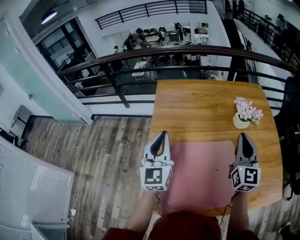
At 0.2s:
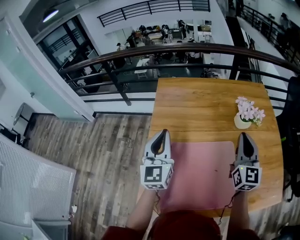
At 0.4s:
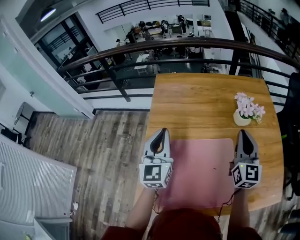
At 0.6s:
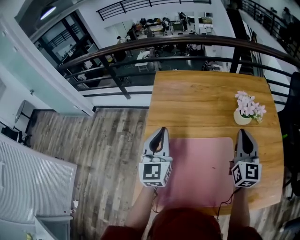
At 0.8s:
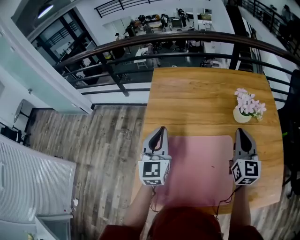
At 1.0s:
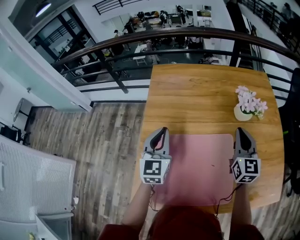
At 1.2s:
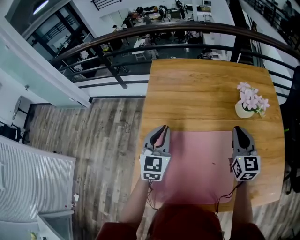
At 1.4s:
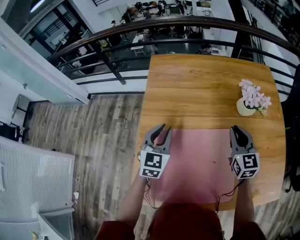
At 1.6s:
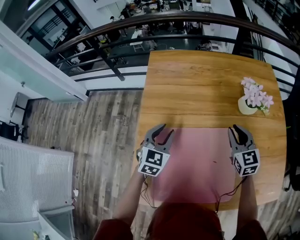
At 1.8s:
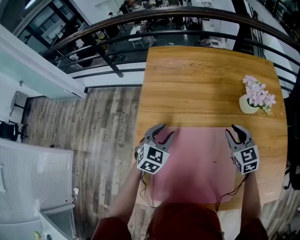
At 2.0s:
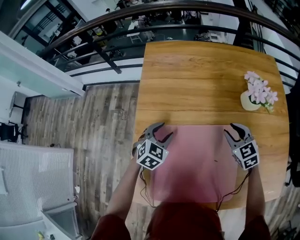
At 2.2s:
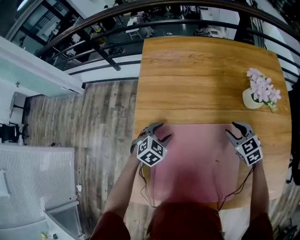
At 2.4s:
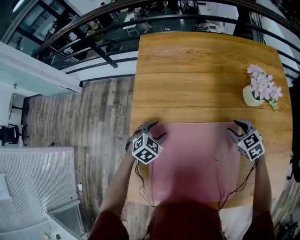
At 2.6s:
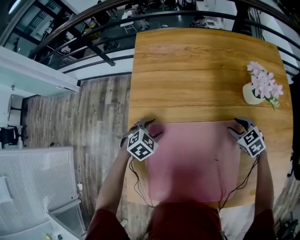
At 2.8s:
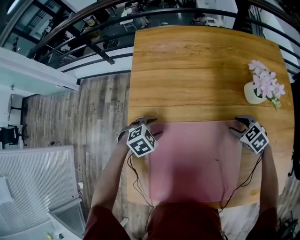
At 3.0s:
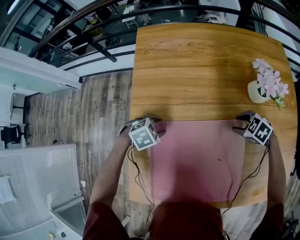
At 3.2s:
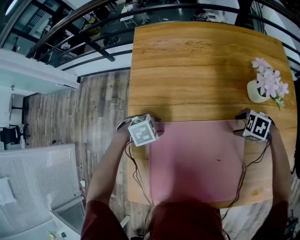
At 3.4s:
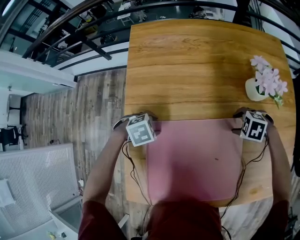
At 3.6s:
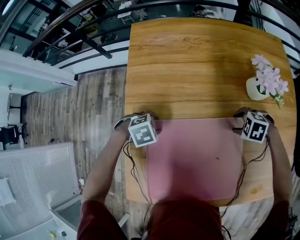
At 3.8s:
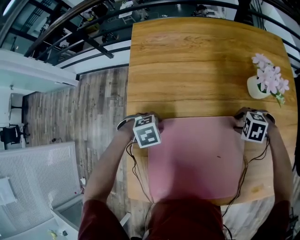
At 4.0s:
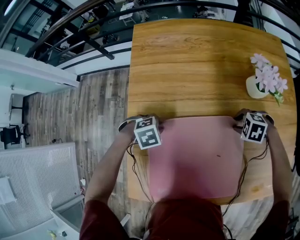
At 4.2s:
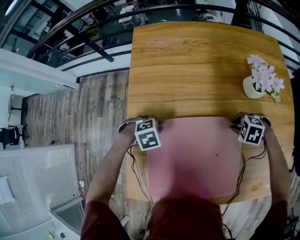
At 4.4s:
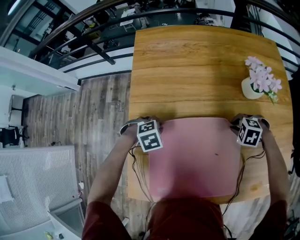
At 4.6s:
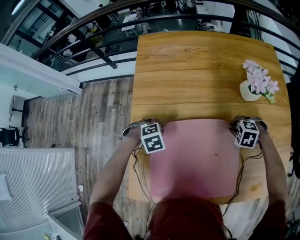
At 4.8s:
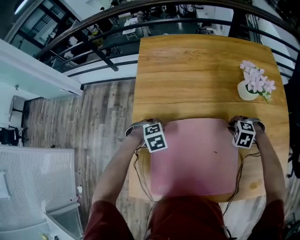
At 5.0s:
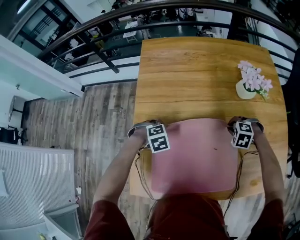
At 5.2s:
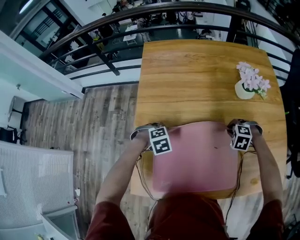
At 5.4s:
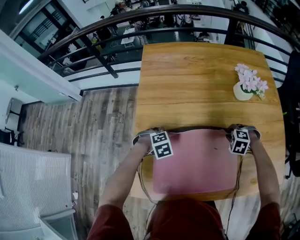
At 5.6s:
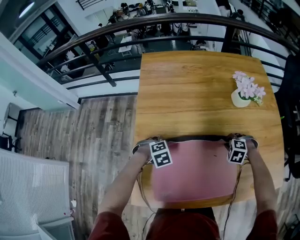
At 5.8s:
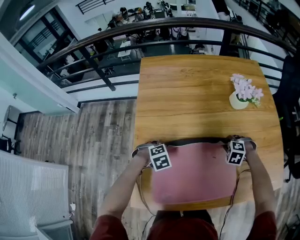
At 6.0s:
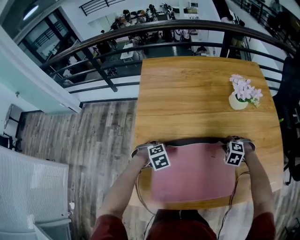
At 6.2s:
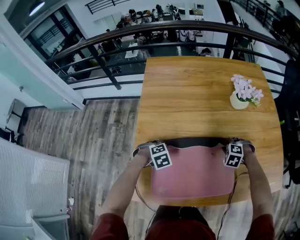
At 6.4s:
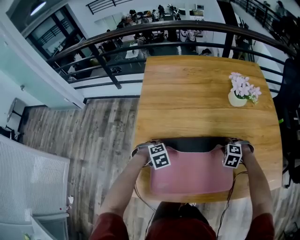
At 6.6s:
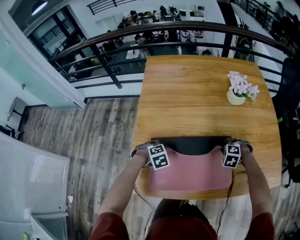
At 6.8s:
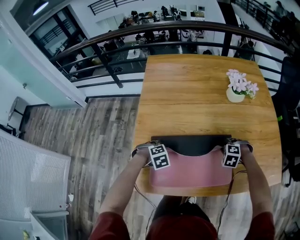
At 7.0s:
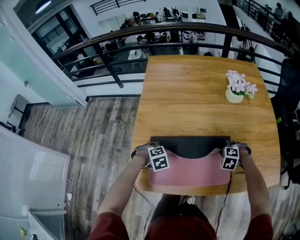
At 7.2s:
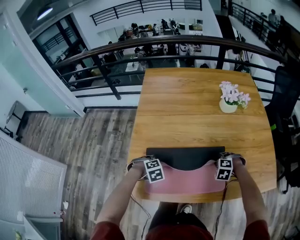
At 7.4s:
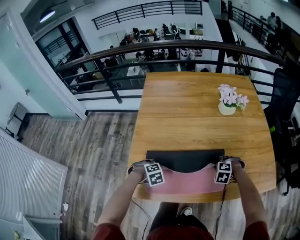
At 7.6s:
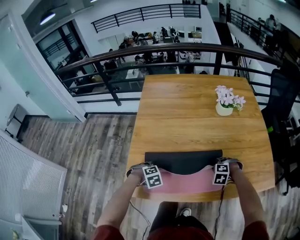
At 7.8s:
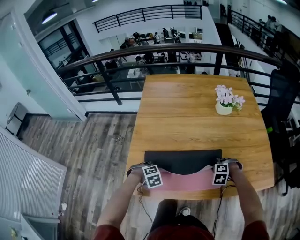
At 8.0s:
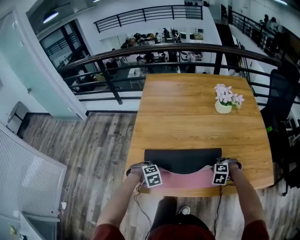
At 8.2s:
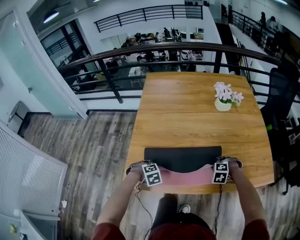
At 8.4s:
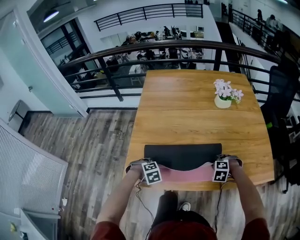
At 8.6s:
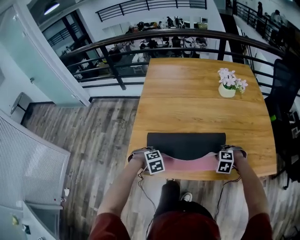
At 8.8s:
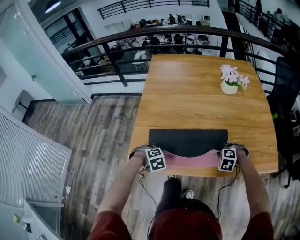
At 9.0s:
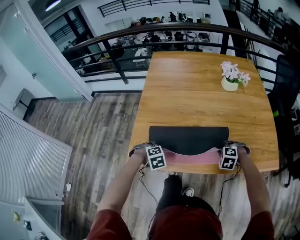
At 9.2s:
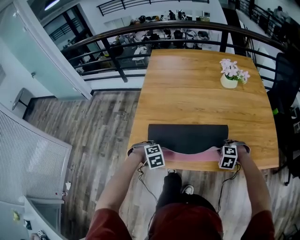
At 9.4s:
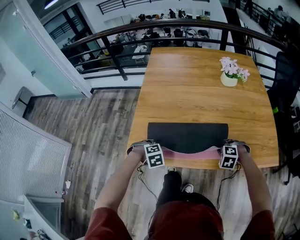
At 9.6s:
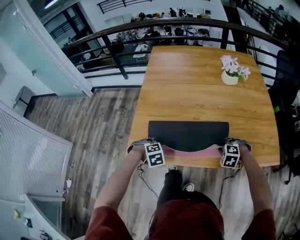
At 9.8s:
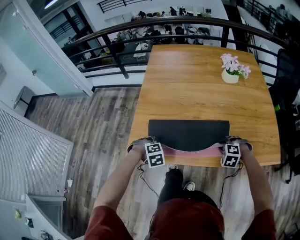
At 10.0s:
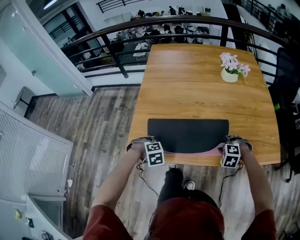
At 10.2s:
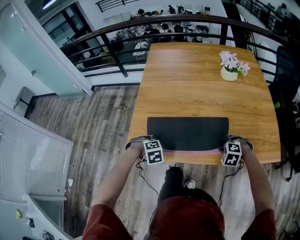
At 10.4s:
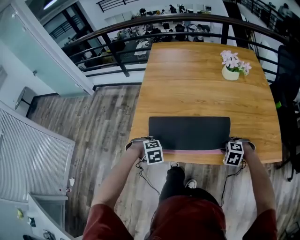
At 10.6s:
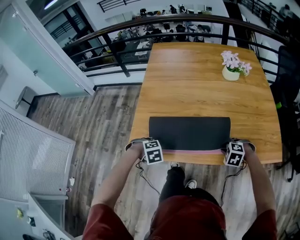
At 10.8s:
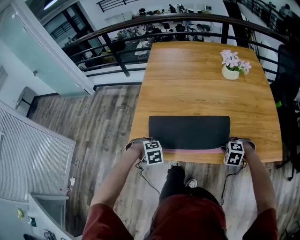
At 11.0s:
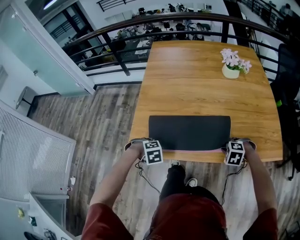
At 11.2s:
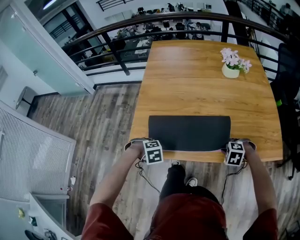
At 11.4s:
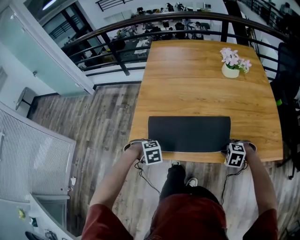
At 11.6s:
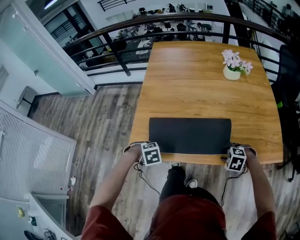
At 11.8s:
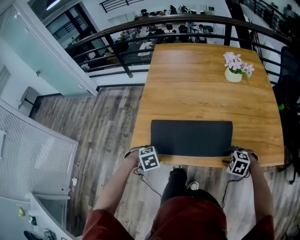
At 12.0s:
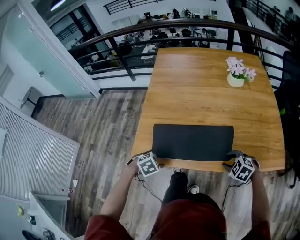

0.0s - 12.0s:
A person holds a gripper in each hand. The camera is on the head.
0.0s - 1.6s: The two grippers go about 20 cm downward and forward. The left gripper tips its fingers downward by approximately 30 degrees, and opens. The right gripper swivels some 30 degrees.
1.6s - 3.0s: Both grippers move downward, roughly 20 cm. The left gripper tips its fingers downward by some 40 degrees, while the right gripper points its fingers roughly 40 degrees further downward, and opens its fingers.
3.0s - 4.4s: The left gripper closes, while the right gripper changes its angle by about 20 degrees, and closes.
4.4s - 6.0s: The right gripper changes place by about 10 cm; the left gripper ends up approximately 10 cm from where it was.
6.0s - 7.6s: The right gripper shifts by about 20 cm; the left gripper moves roughly 20 cm.
7.6s - 9.0s: The right gripper changes place by roughly 10 cm; the left gripper changes place by some 10 cm.
9.0s - 10.4s: The grippers move only a little.
10.4s - 12.0s: The left gripper rotates approximately 20 degrees.

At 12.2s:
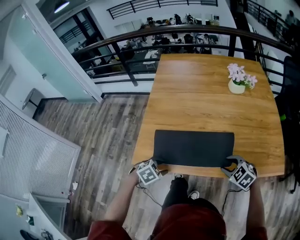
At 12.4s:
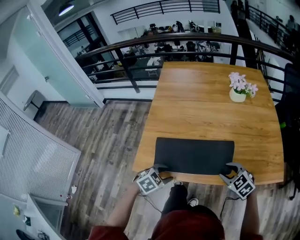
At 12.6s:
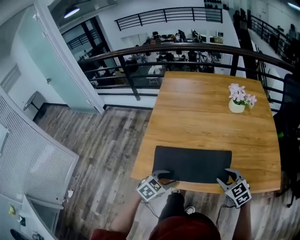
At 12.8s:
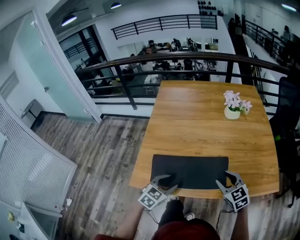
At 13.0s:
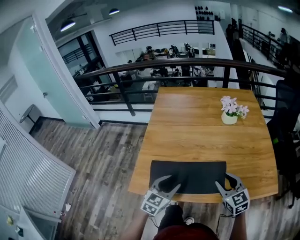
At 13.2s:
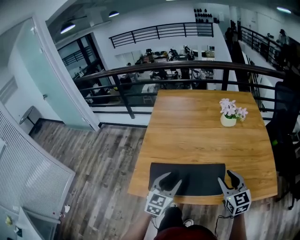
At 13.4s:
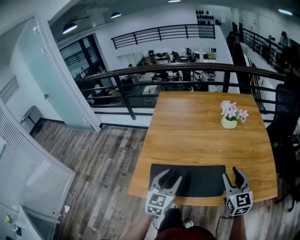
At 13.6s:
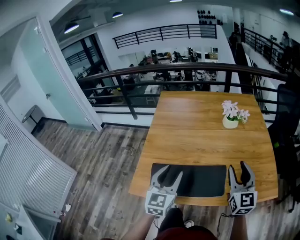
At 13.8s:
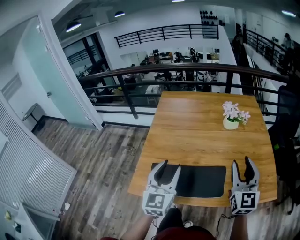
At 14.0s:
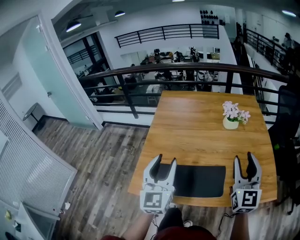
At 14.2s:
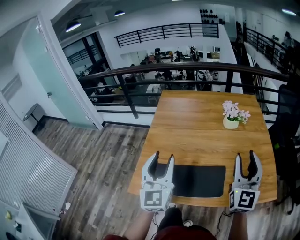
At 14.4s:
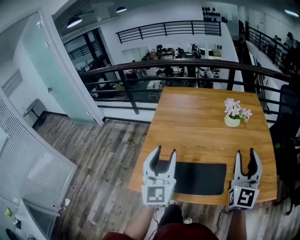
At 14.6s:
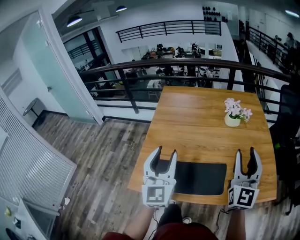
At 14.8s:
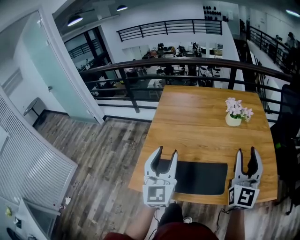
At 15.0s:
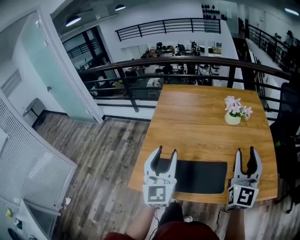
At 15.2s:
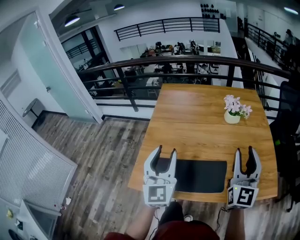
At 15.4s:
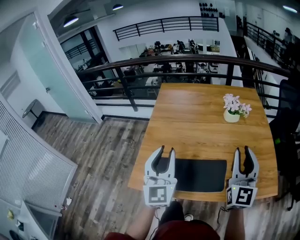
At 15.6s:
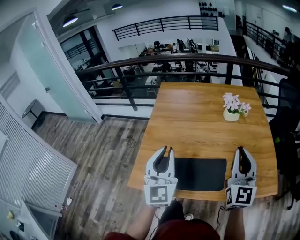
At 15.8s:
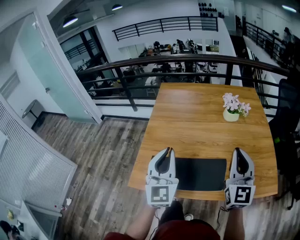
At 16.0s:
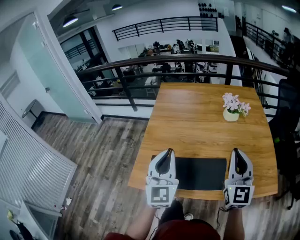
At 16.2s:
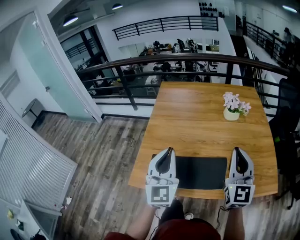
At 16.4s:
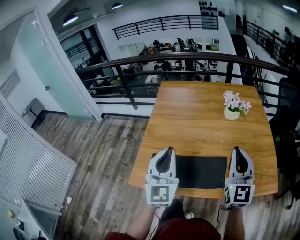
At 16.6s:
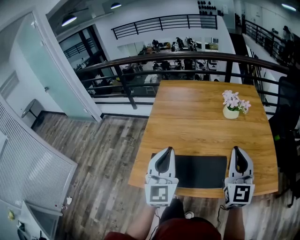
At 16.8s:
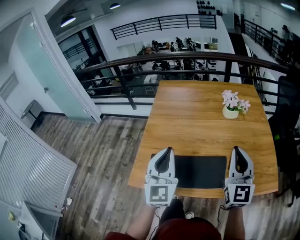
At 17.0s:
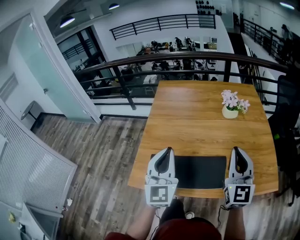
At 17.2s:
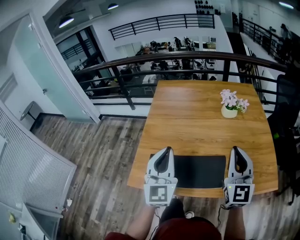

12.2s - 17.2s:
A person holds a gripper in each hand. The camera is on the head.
12.2s - 13.8s: The two grippers go roughly 30 cm upward. The left gripper tips its fingers upward by roughly 70 degrees, while the right gripper tips its fingers upward by roughly 60 degrees.
13.8s - 15.6s: The left gripper shifts by approximately 5 cm, and closes, while the right gripper closes.
15.6s - 17.2s: There are only small adjustments of the grippers.

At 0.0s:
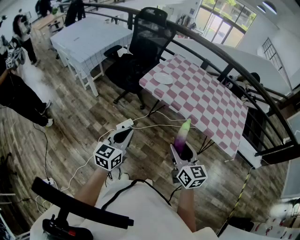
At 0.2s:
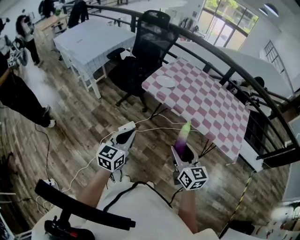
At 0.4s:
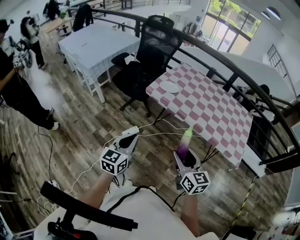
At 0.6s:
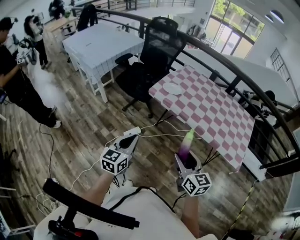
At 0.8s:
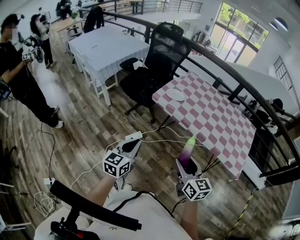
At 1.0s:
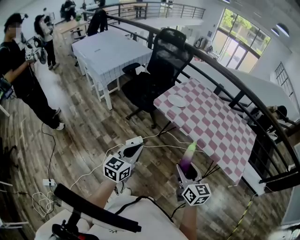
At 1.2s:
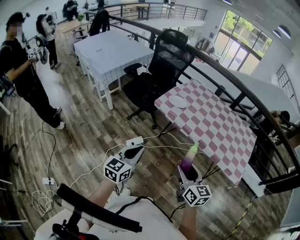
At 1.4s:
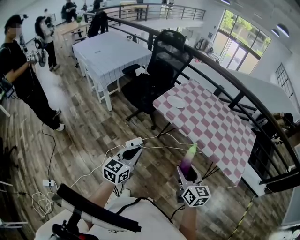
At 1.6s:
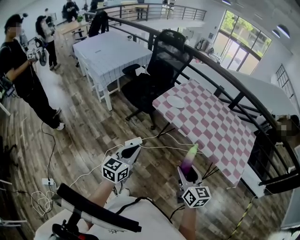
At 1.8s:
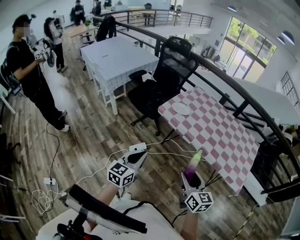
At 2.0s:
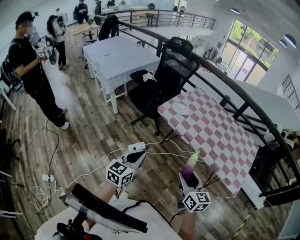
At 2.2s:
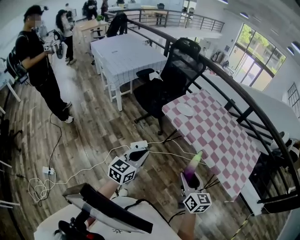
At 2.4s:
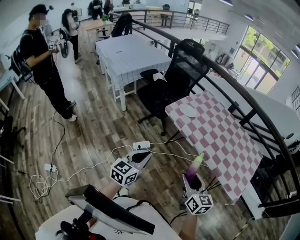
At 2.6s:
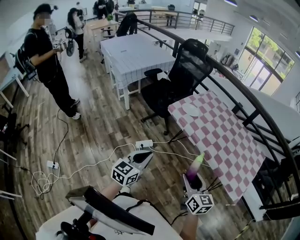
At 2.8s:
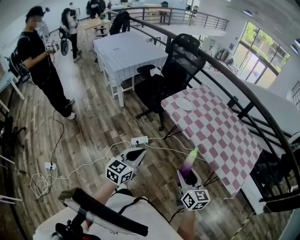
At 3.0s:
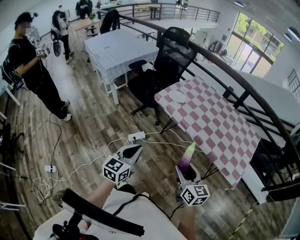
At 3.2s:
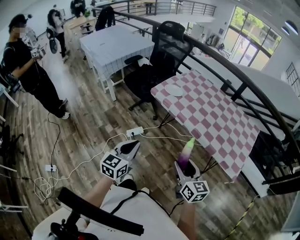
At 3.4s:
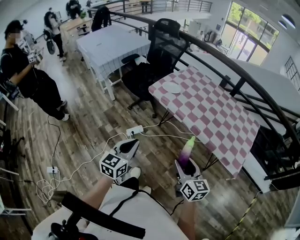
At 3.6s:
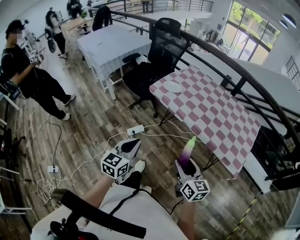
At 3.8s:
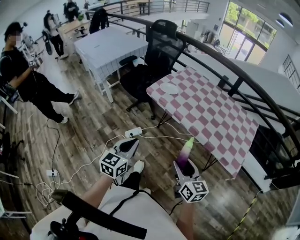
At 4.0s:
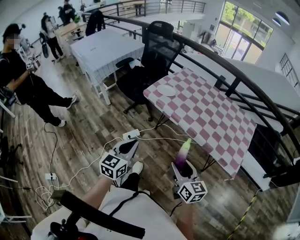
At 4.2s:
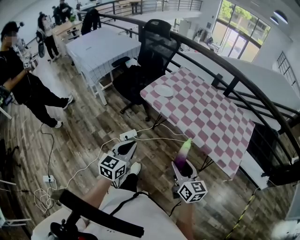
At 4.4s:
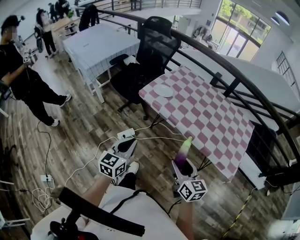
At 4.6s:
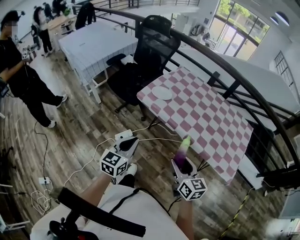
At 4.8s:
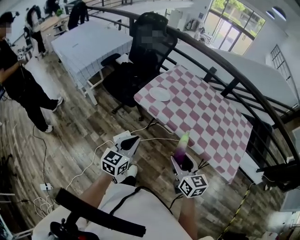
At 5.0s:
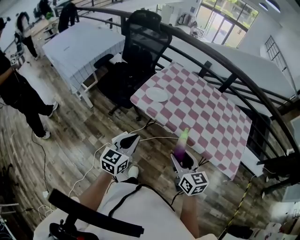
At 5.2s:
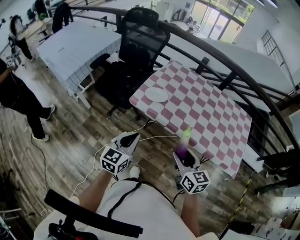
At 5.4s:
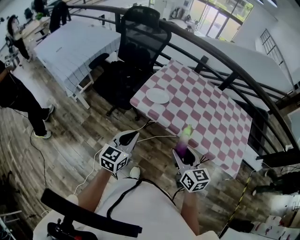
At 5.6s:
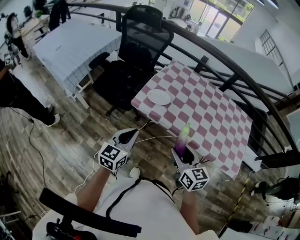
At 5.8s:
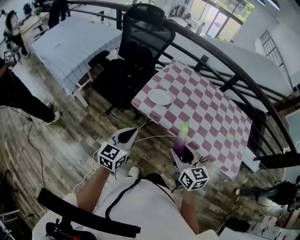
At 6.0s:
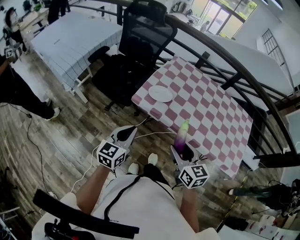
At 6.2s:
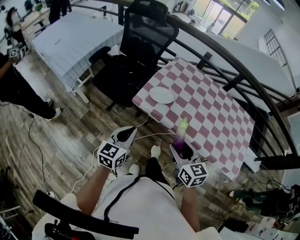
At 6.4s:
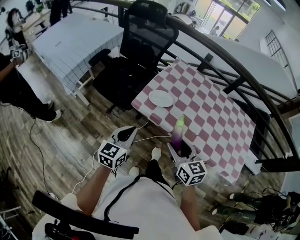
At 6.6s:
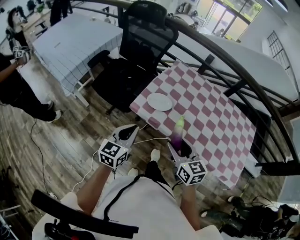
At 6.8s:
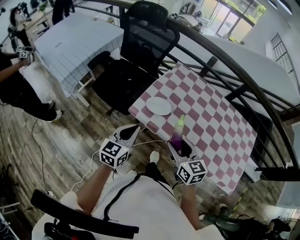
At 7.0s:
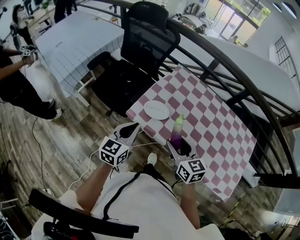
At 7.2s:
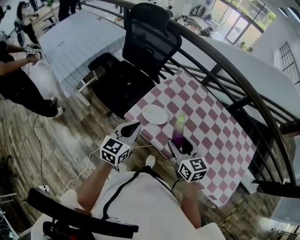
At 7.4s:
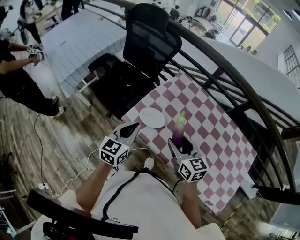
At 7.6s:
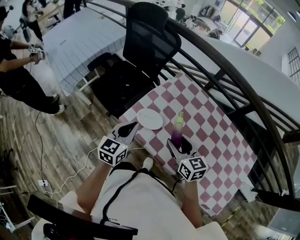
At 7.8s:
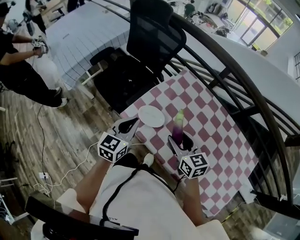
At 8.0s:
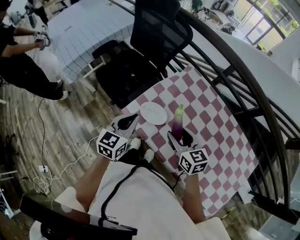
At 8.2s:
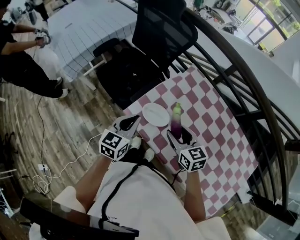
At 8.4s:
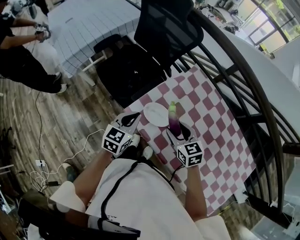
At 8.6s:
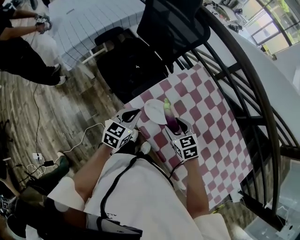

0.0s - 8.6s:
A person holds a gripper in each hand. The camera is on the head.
0.0s - 1.4s: There are only small adjustments of the grippers.
1.4s - 2.8s: The two grippers go roughly 5 cm to the right.
2.8s - 4.4s: The left gripper moves forward, roughly 10 cm; the right gripper heads forward, covering approximately 5 cm.
4.4s - 5.8s: Both grippers travel together forward and to the left, some 25 cm.
5.8s - 7.2s: The grippers both shift forward by about 20 cm.
7.2s - 8.6s: The right gripper is displaced forward and downward by approximately 20 cm, and changes its angle by roughly 30 degrees. The left gripper is displaced downward and forward by roughly 15 cm.
